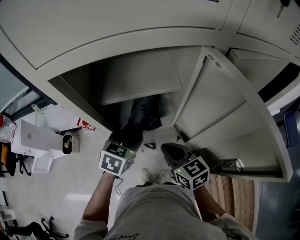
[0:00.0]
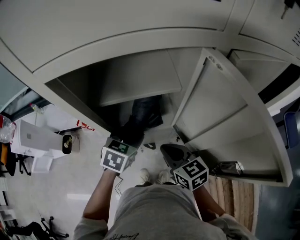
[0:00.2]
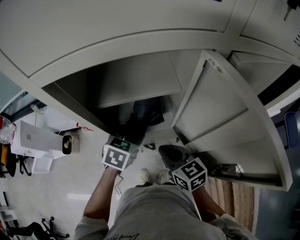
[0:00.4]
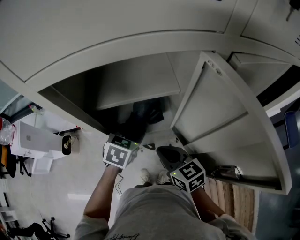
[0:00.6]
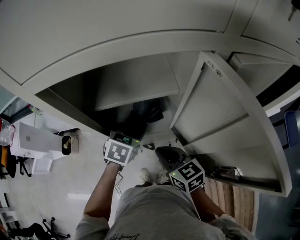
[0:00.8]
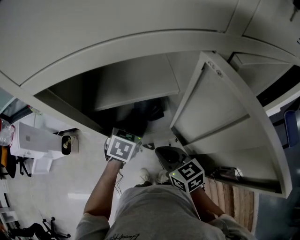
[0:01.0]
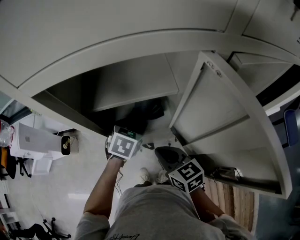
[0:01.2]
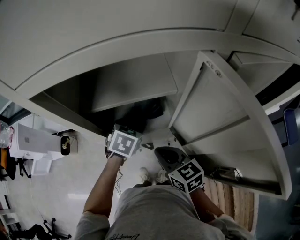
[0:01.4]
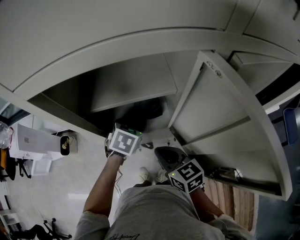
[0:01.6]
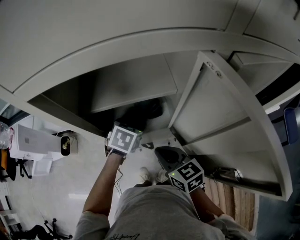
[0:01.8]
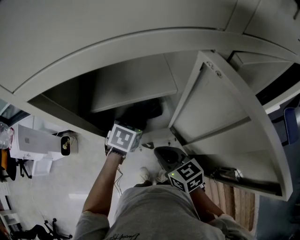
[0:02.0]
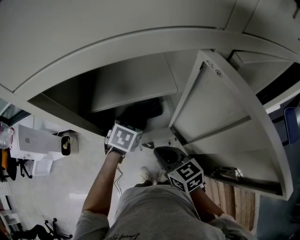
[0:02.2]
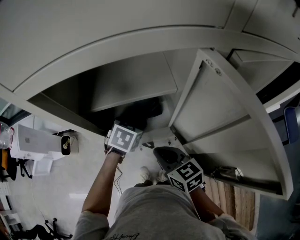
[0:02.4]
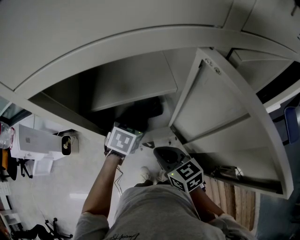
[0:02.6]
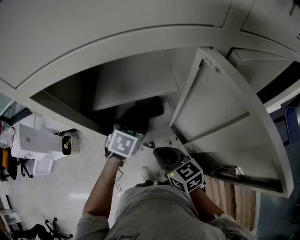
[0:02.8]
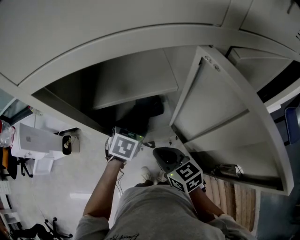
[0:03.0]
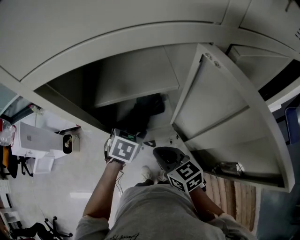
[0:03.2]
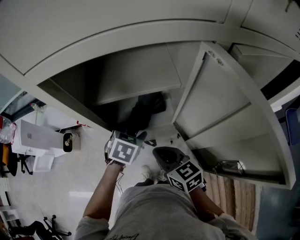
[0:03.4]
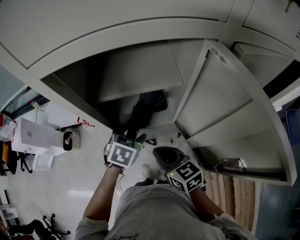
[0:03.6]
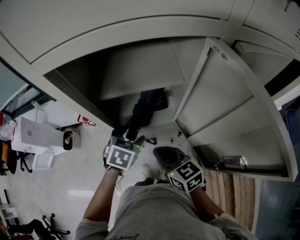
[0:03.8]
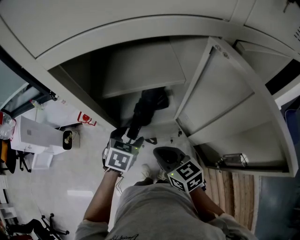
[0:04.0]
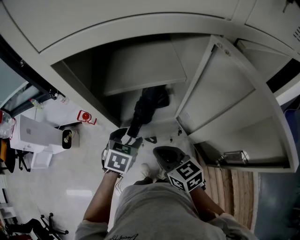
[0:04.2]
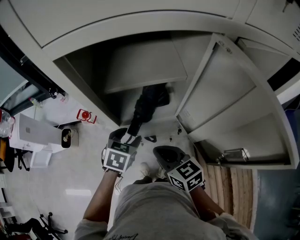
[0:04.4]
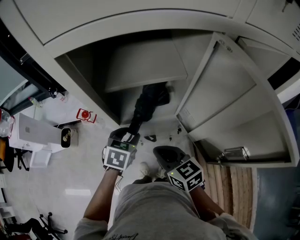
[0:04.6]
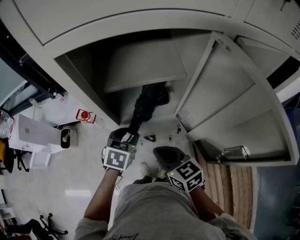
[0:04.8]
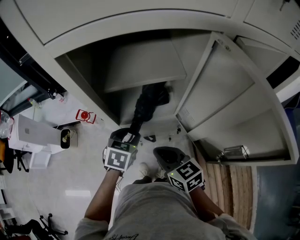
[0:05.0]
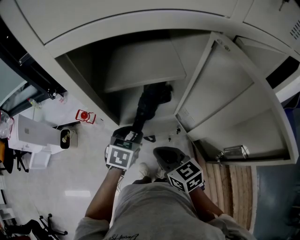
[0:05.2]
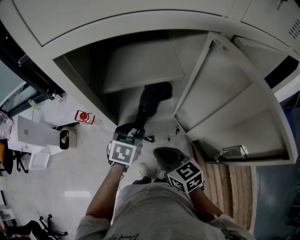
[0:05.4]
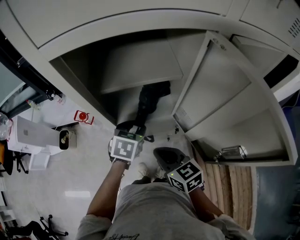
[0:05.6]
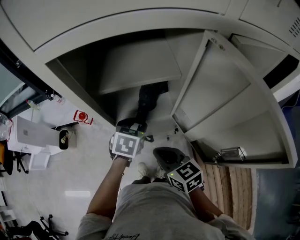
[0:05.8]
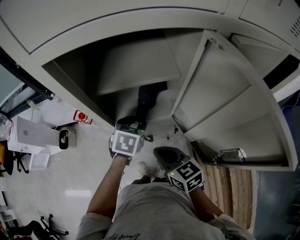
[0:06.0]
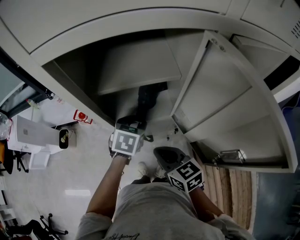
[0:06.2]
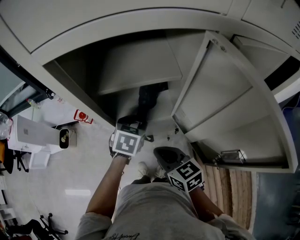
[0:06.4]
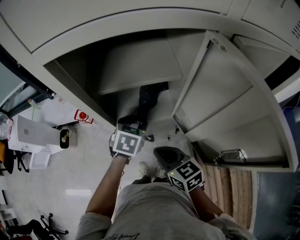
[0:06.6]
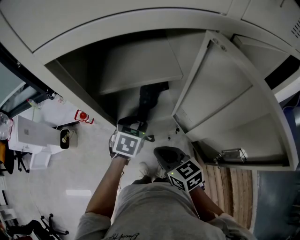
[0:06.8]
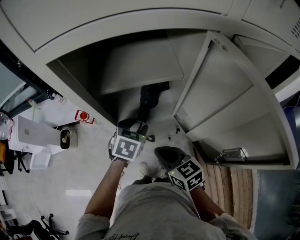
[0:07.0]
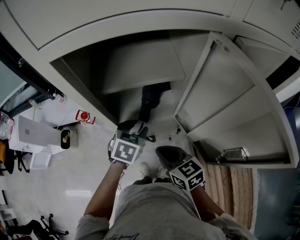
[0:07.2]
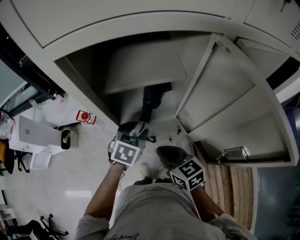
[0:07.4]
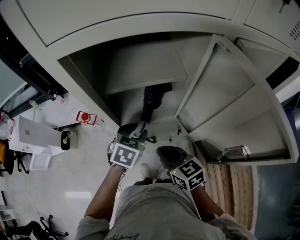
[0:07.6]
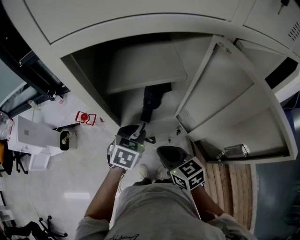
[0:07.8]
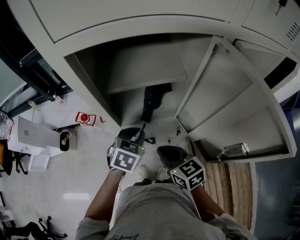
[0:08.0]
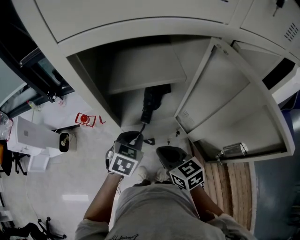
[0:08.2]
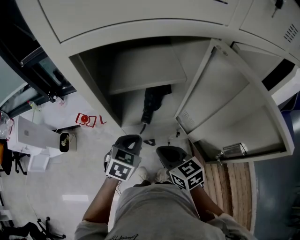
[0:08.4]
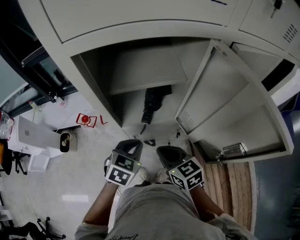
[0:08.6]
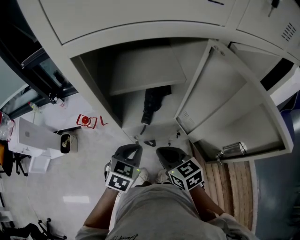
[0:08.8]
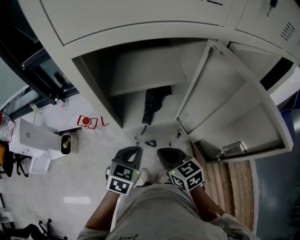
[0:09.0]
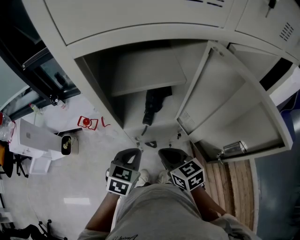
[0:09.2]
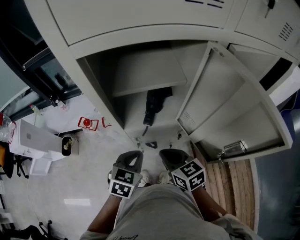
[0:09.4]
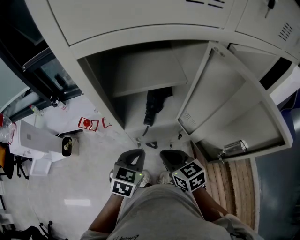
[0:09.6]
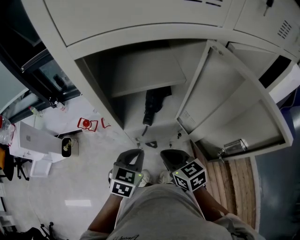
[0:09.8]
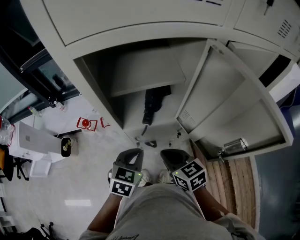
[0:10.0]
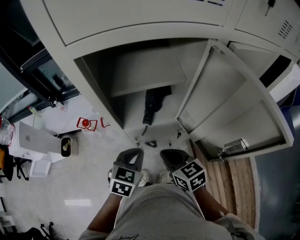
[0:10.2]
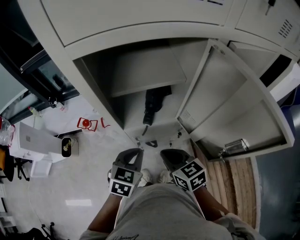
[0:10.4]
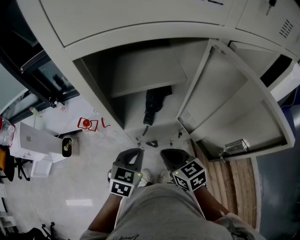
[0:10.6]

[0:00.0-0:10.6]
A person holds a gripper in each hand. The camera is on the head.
0:00.0 to 0:01.6: The left gripper travels forward by some 5 cm.
0:01.6 to 0:03.0: The grippers stay close to where they were, moving slightly.
0:03.0 to 0:04.6: The left gripper shifts some 10 cm to the left and backward, and closes up.
0:04.6 to 0:06.0: The left gripper goes some 5 cm to the right.
0:06.0 to 0:07.6: There are only small adjustments of the grippers.
0:07.6 to 0:09.0: The left gripper goes about 10 cm backward, and closes up.
0:09.0 to 0:10.6: Neither gripper changes place.

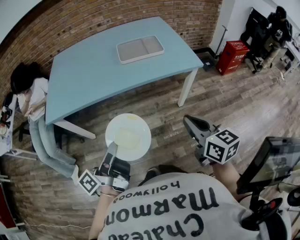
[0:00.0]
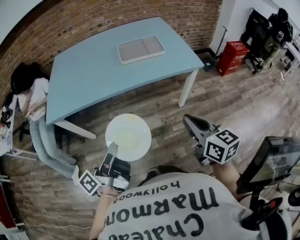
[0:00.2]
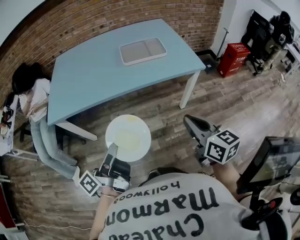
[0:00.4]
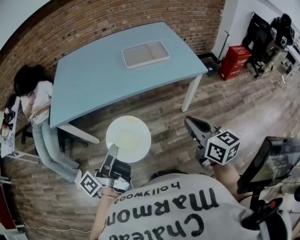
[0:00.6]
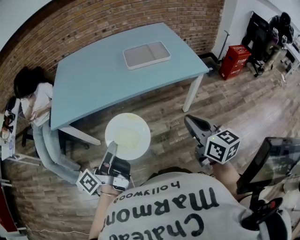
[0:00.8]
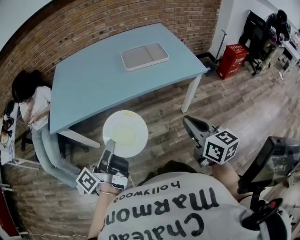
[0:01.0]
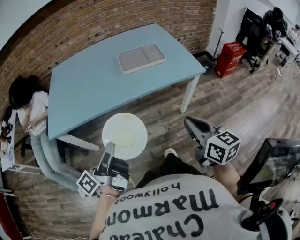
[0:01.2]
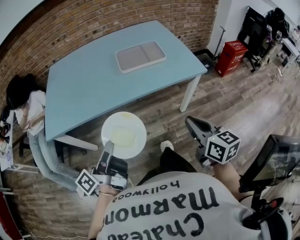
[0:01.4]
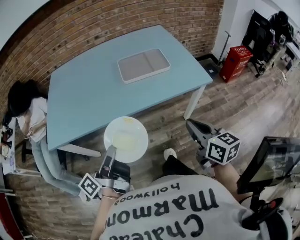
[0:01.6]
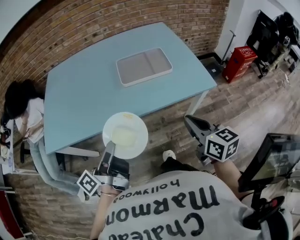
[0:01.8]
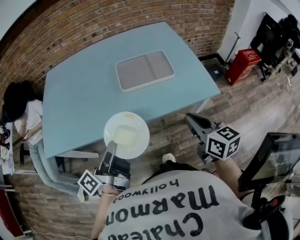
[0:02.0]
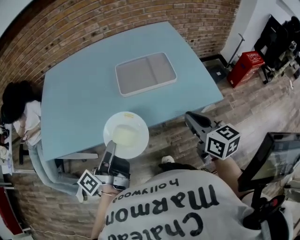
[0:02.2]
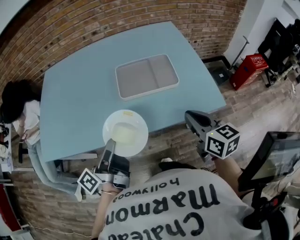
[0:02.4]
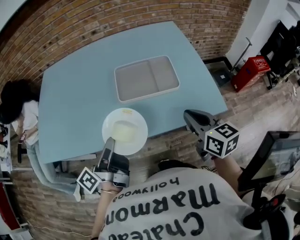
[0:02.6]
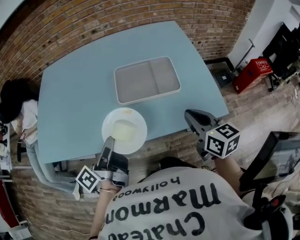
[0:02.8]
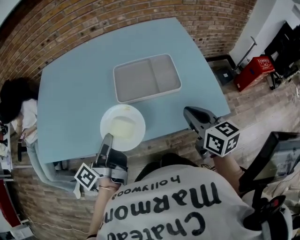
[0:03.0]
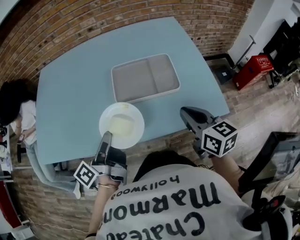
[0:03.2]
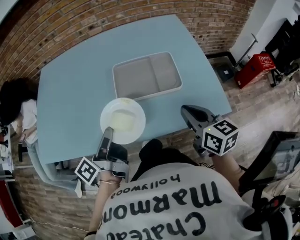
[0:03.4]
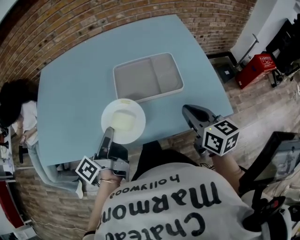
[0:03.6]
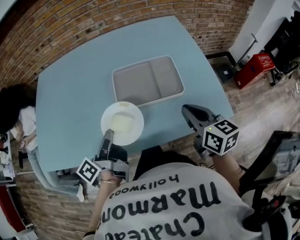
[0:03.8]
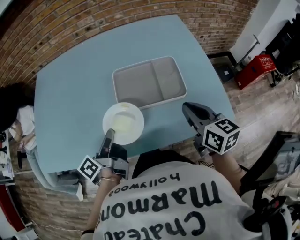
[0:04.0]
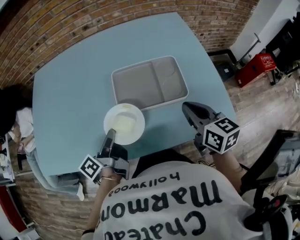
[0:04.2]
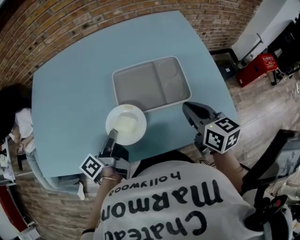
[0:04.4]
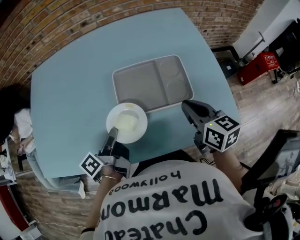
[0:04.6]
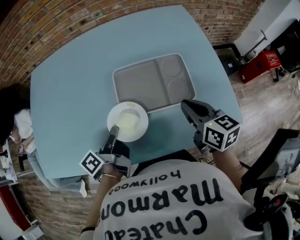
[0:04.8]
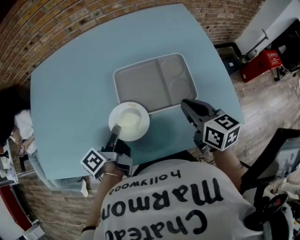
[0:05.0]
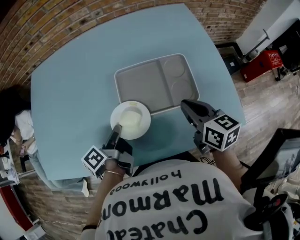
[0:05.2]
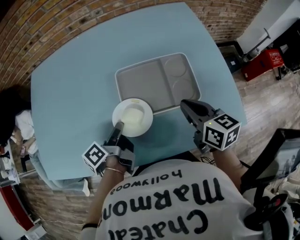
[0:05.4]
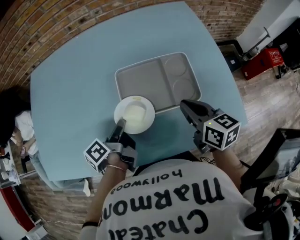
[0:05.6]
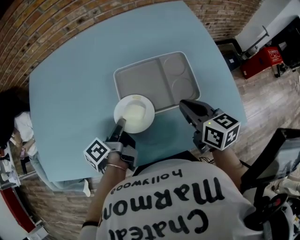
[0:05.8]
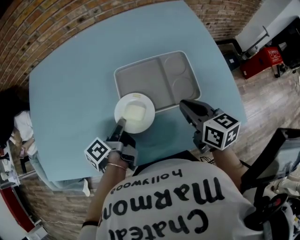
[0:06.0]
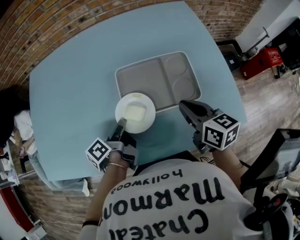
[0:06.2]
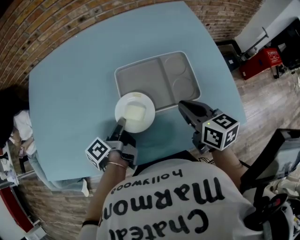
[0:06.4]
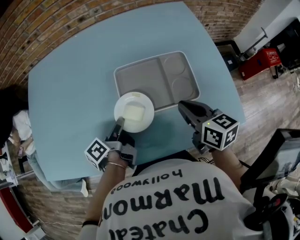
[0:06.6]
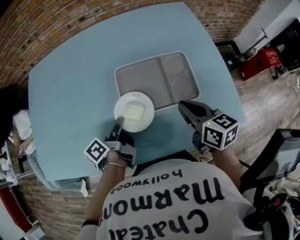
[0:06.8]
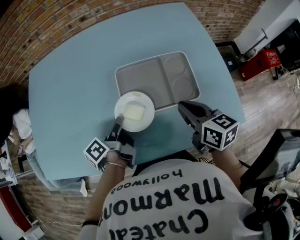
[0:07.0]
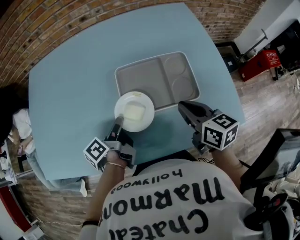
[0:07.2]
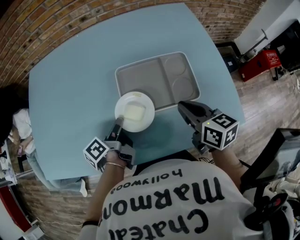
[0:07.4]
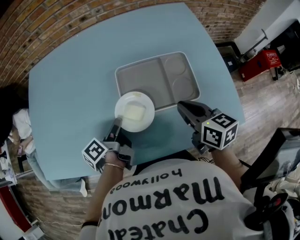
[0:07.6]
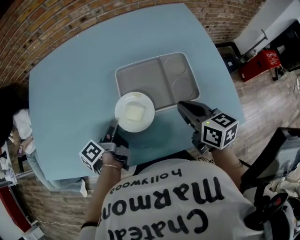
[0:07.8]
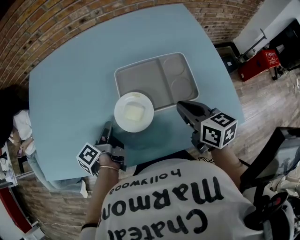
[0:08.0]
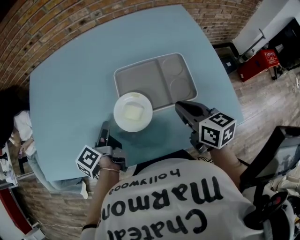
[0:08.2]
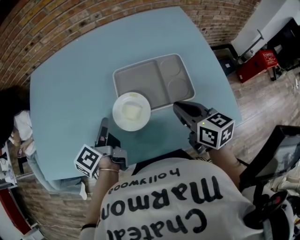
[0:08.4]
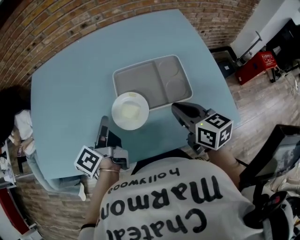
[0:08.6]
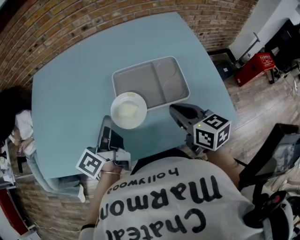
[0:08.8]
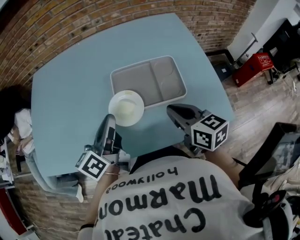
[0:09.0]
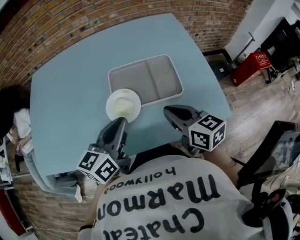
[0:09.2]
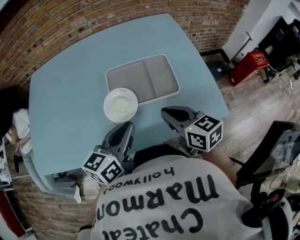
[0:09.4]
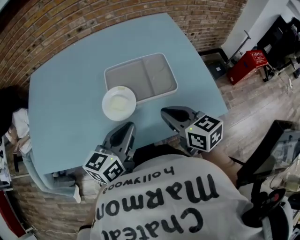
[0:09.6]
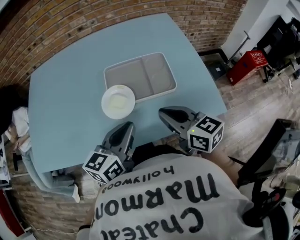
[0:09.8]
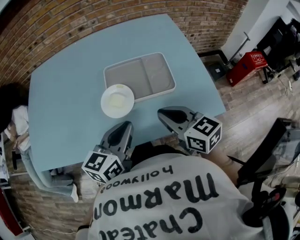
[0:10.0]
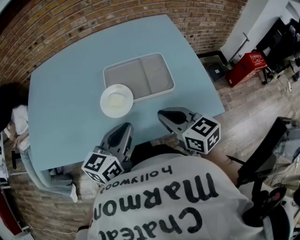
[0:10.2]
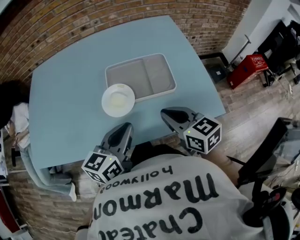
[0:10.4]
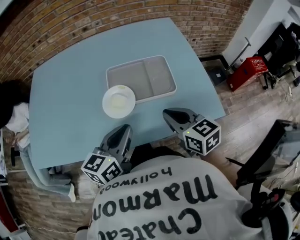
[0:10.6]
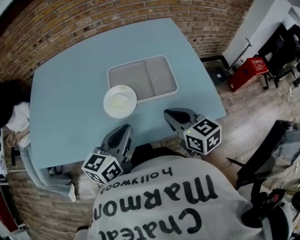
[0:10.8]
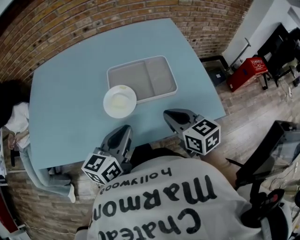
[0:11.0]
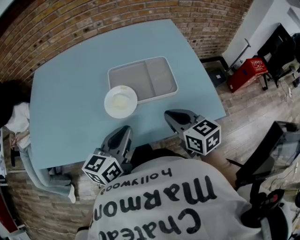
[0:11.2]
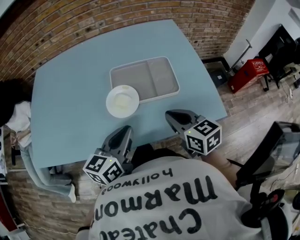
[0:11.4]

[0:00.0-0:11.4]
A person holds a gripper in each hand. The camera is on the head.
0:00.0 to 0:01.4: The right gripper ends up roughly 5 cm from where it was.
0:01.4 to 0:02.8: The right gripper moves some 35 cm.
0:02.8 to 0:04.2: The right gripper ends up roughly 10 cm from where it was.
0:04.2 to 0:05.6: The right gripper shifts by roughly 10 cm.
0:08.6 to 0:10.0: The right gripper moves approximately 10 cm.

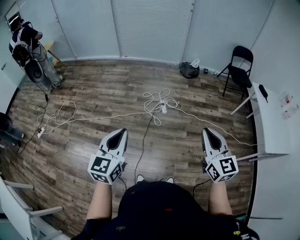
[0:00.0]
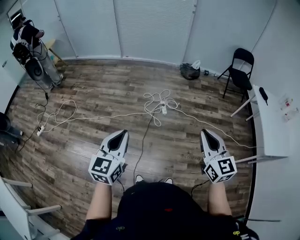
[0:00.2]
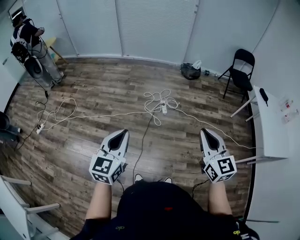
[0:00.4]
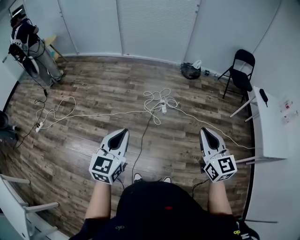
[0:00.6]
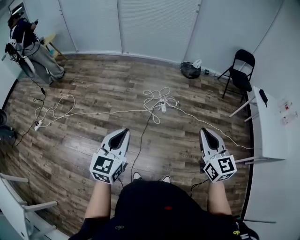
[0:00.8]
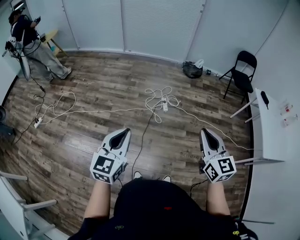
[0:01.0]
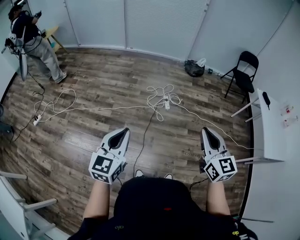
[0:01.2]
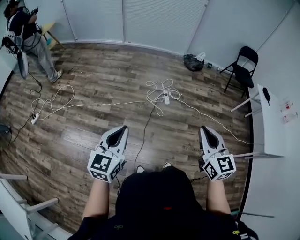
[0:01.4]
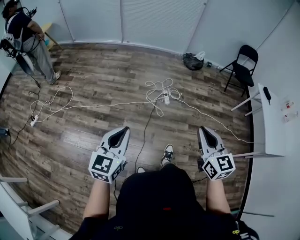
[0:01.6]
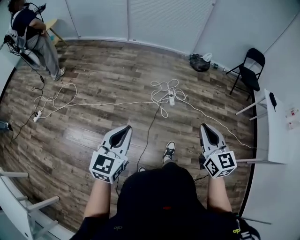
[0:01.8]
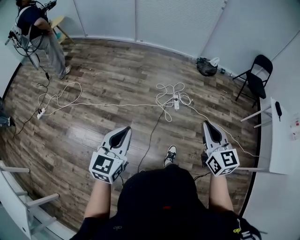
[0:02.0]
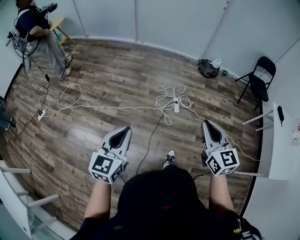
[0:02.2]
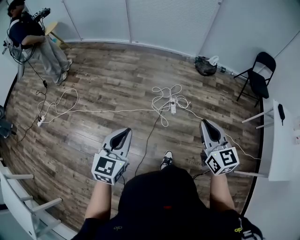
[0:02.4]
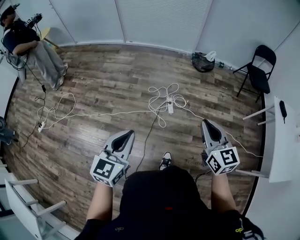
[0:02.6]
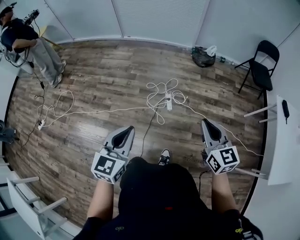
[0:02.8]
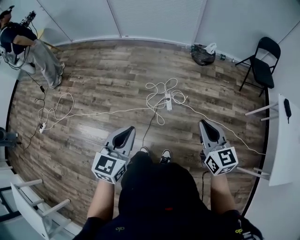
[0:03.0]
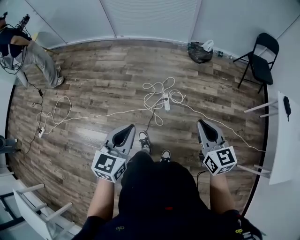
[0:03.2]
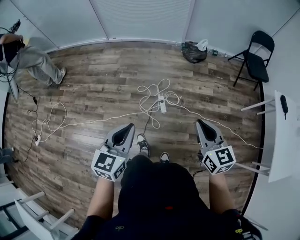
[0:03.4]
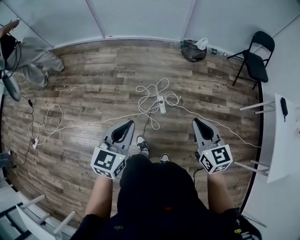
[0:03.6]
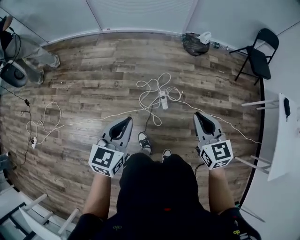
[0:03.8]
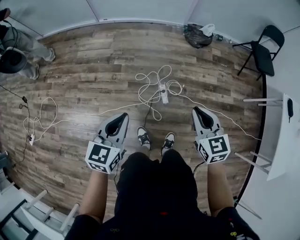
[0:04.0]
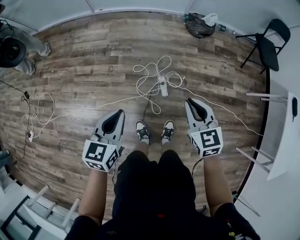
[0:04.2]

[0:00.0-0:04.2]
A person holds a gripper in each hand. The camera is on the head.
0:00.0 to 0:01.4: The grippers both shift to the left by some 10 cm.
0:01.4 to 0:02.8: The two grippers go some 40 cm forward and to the right.
0:02.8 to 0:04.2: Both grippers move forward and downward, approximately 35 cm.
